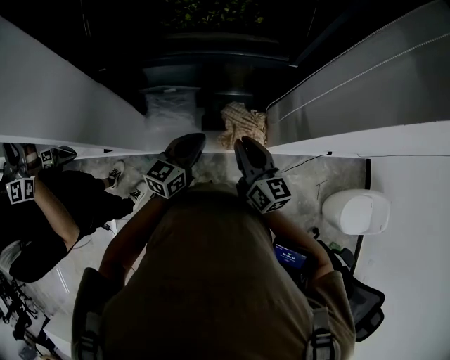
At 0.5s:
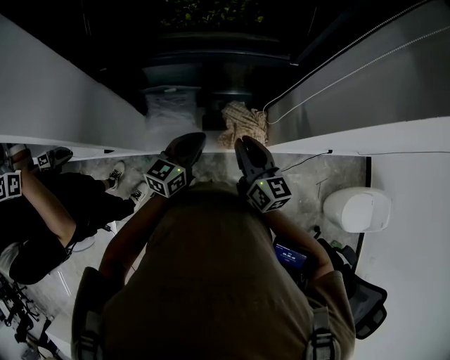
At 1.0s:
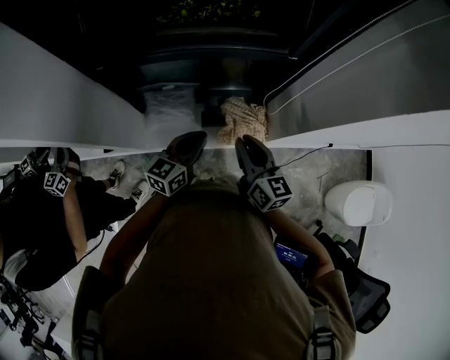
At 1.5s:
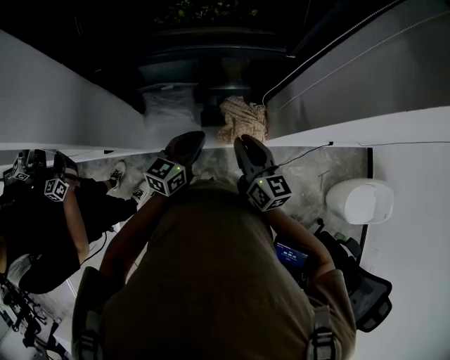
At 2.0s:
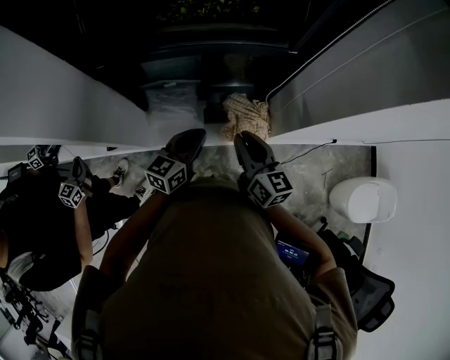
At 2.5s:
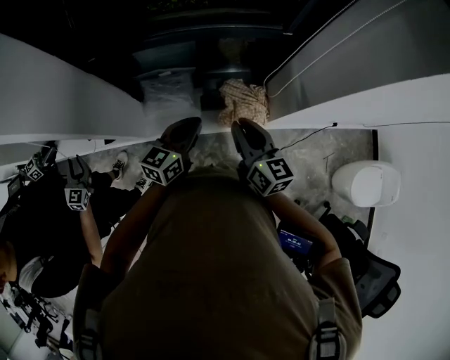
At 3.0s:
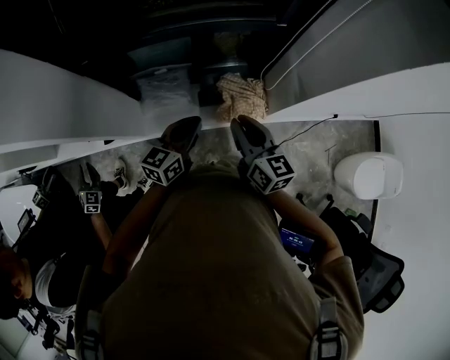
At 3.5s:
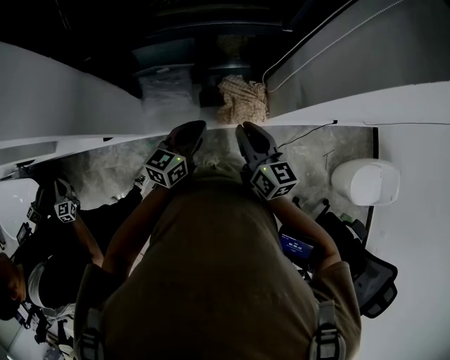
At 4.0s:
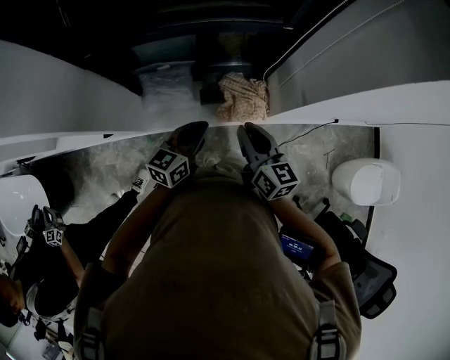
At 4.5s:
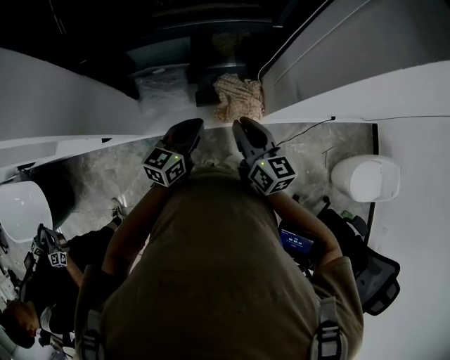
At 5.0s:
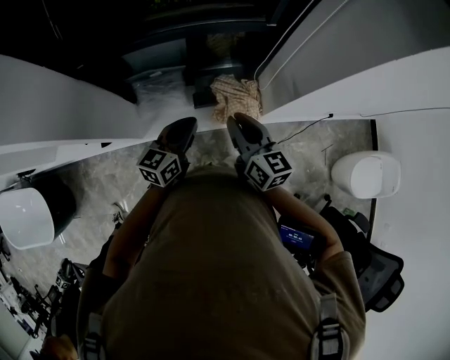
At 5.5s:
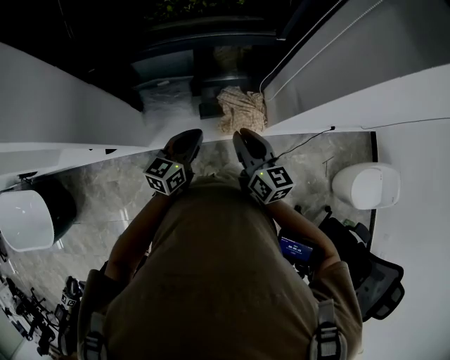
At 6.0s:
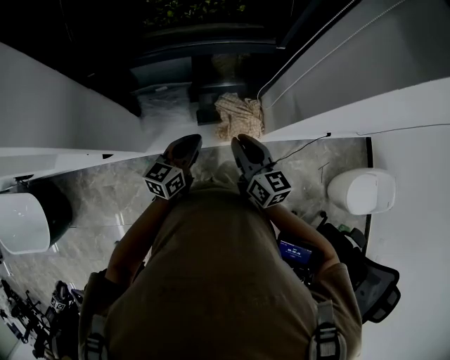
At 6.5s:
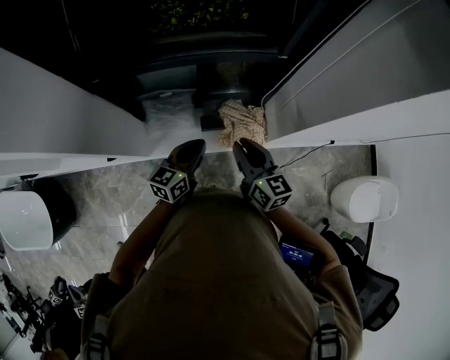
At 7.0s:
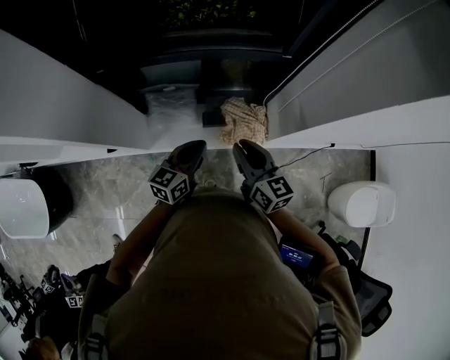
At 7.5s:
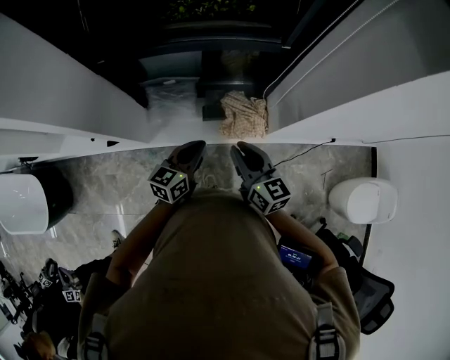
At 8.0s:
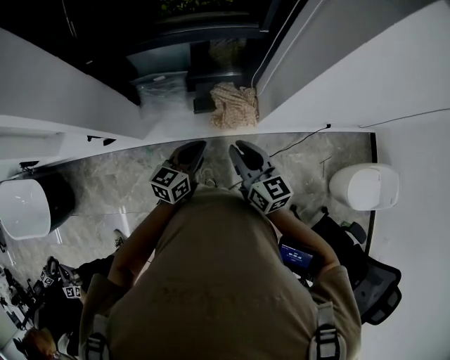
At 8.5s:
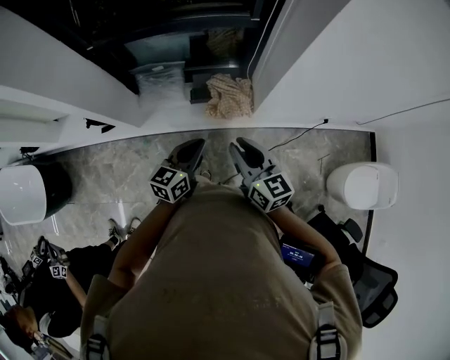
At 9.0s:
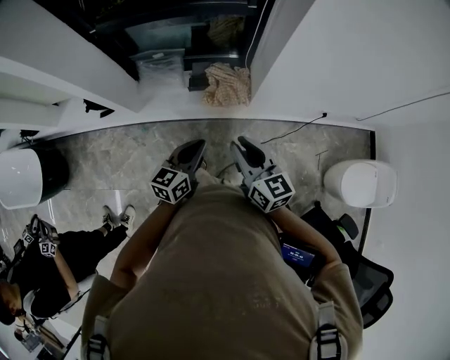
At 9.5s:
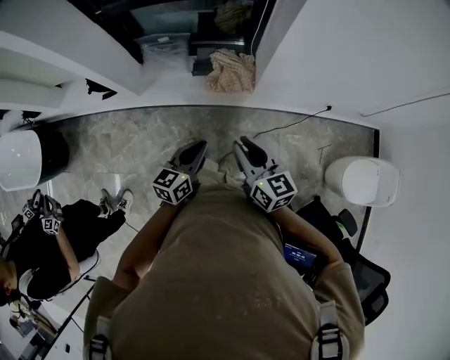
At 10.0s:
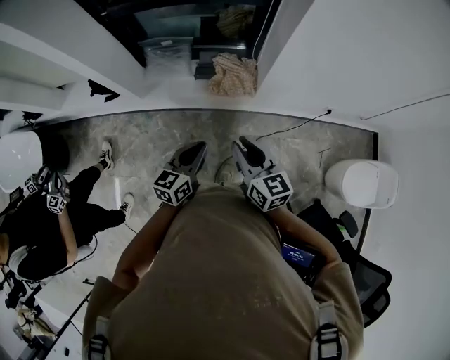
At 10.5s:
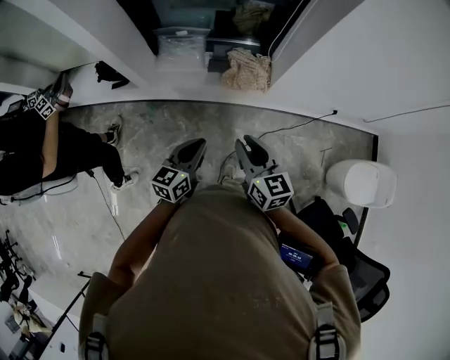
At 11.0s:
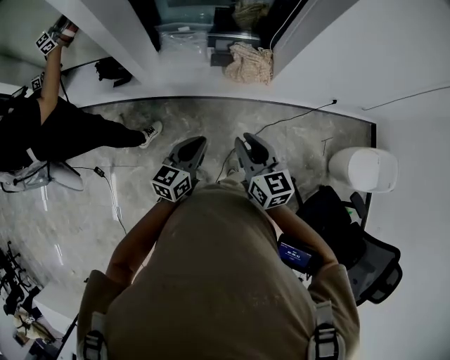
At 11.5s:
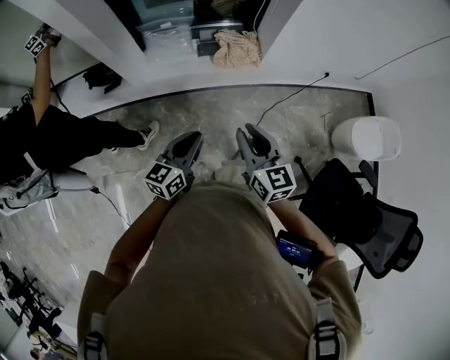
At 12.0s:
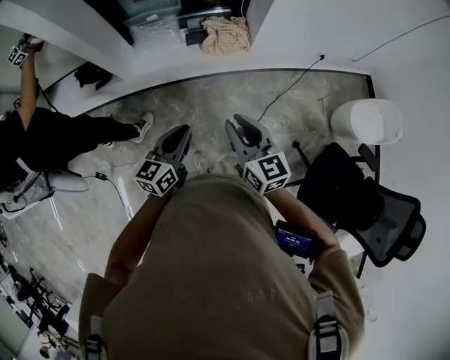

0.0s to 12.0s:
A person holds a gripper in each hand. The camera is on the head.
0.0s to 2.0s: The grippers move only a little.
2.0s to 4.0s: The left gripper ends up approximately 5 cm from where it was.
4.0s to 6.0s: The grippers move only a little.
6.0s to 8.0s: Both grippers move backward and to the right, some 15 cm.
8.0s to 10.0s: The left gripper heads backward, covering roughly 20 cm; the right gripper shifts about 20 cm backward and to the right.
10.0s to 12.0s: The grippers both shift backward and to the left by some 20 cm.

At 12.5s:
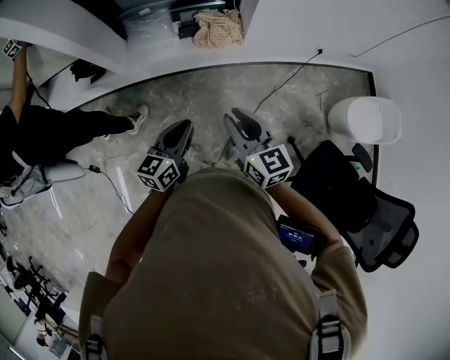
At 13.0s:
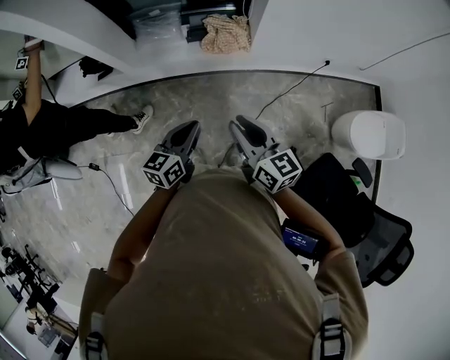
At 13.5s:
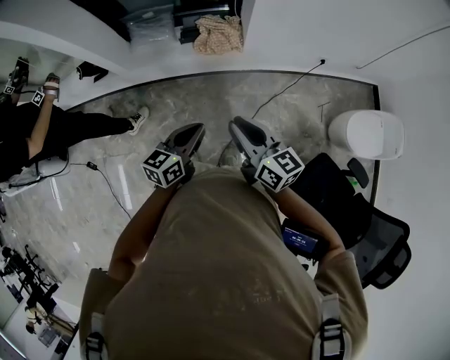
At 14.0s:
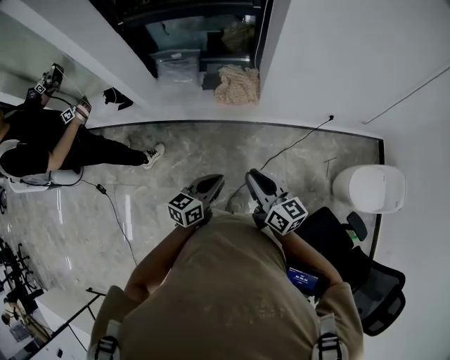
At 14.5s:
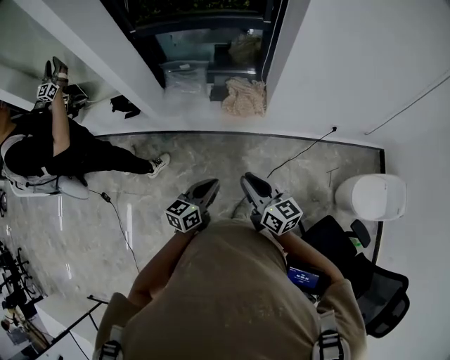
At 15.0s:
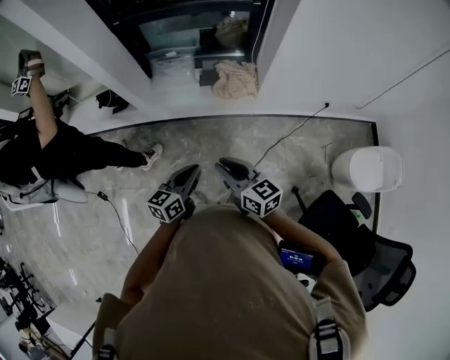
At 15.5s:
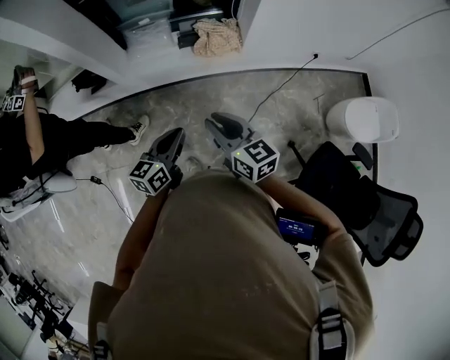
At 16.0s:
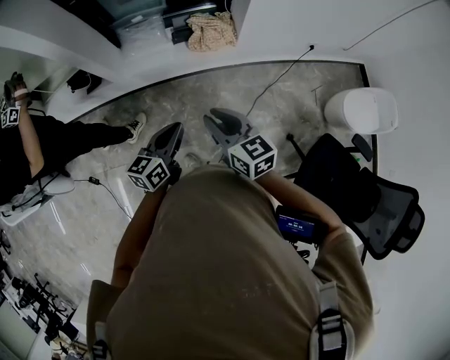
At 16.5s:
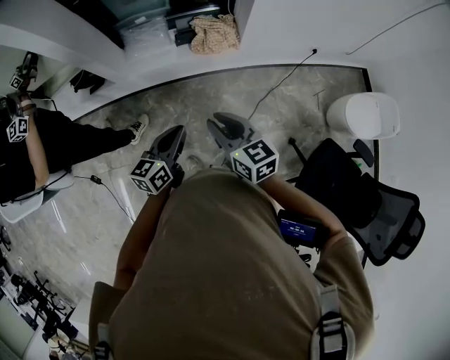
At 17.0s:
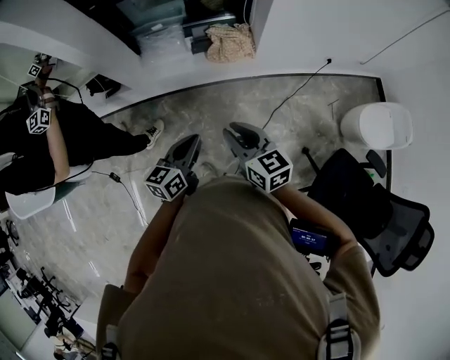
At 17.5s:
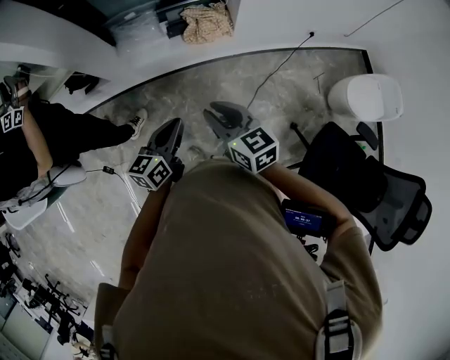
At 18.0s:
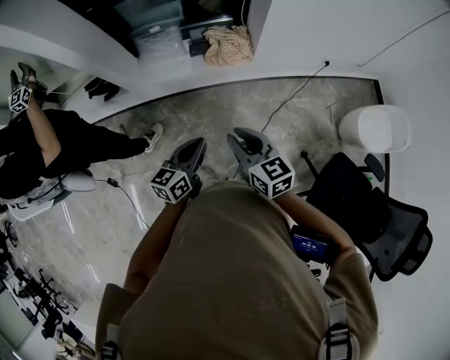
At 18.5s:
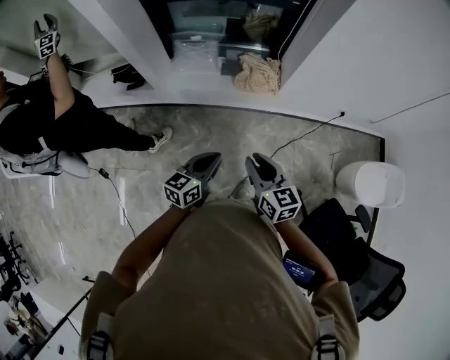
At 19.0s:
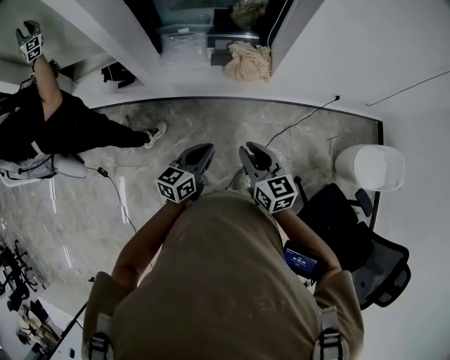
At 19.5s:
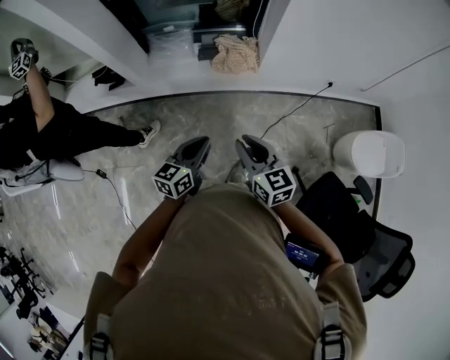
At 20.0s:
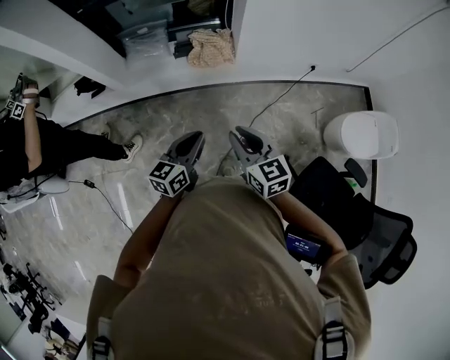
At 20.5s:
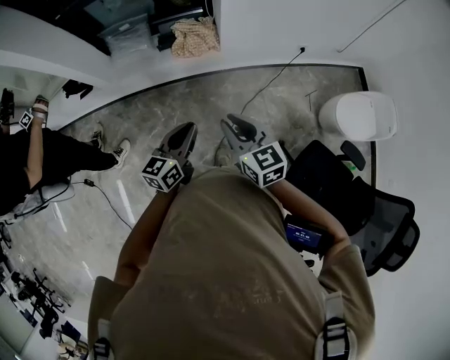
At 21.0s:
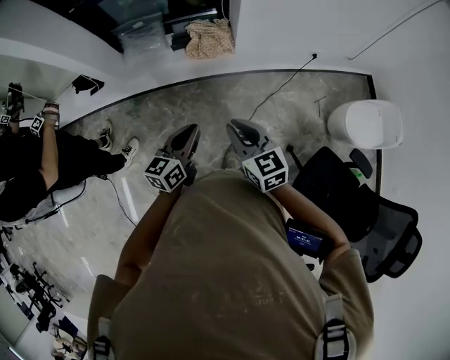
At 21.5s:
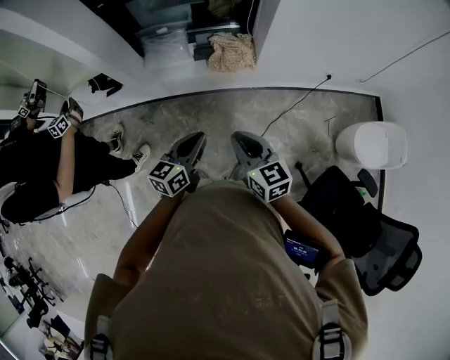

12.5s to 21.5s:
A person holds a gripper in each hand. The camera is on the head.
12.5s to 14.5s: The left gripper is displaced to the right by roughly 5 cm; the right gripper goes to the right and returns, approximately 10 cm each way.
14.5s to 17.0s: Both grippers travel together to the left, approximately 10 cm.
17.0s to 19.5s: The grippers both shift to the right by some 5 cm.
19.5s to 21.5s: The right gripper moves some 10 cm to the right and comes back. Meanwhile the left gripper goes to the right and returns, roughly 10 cm each way.

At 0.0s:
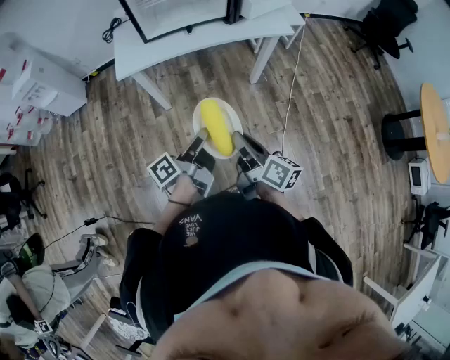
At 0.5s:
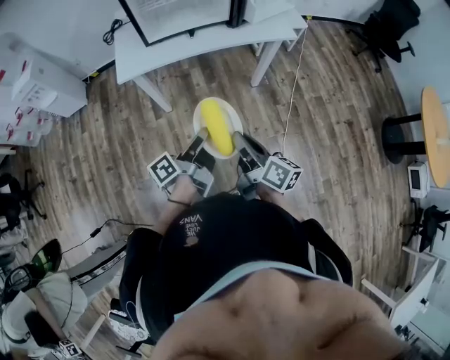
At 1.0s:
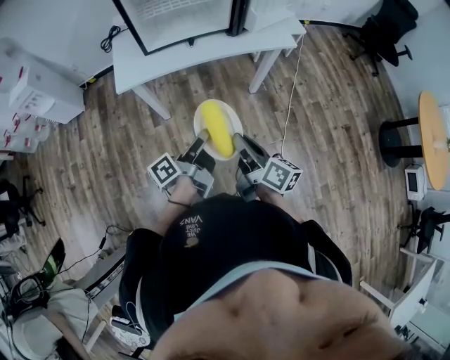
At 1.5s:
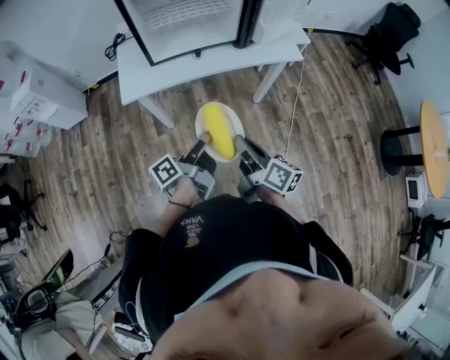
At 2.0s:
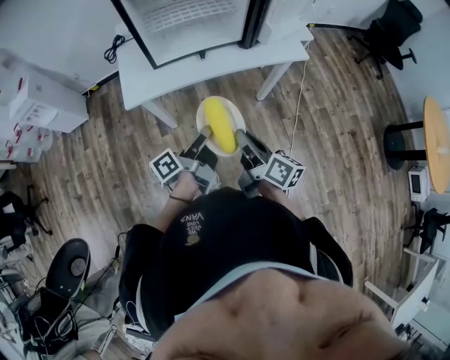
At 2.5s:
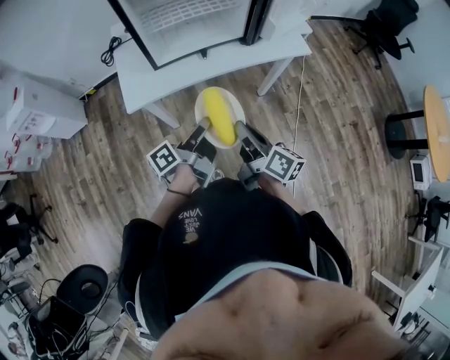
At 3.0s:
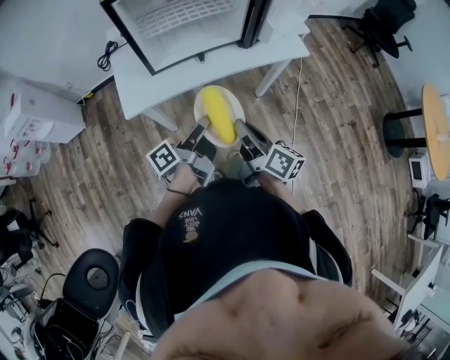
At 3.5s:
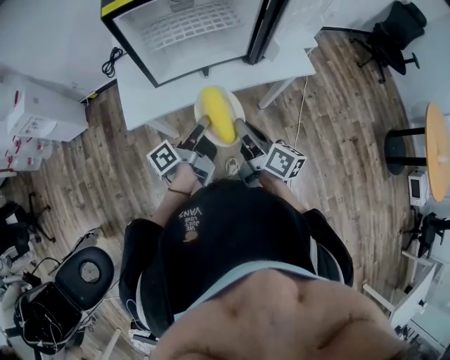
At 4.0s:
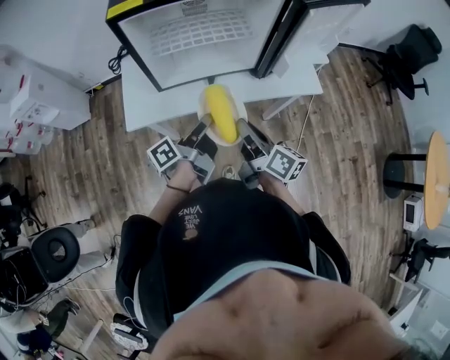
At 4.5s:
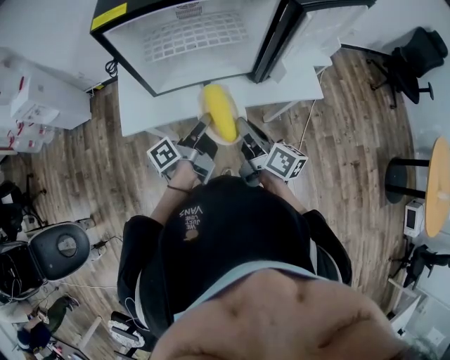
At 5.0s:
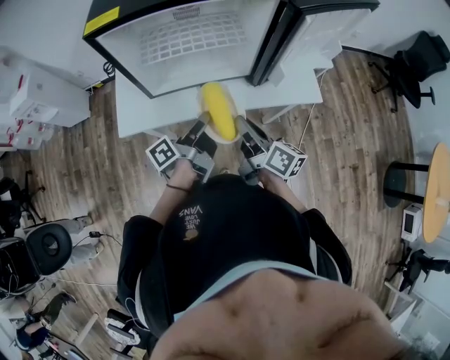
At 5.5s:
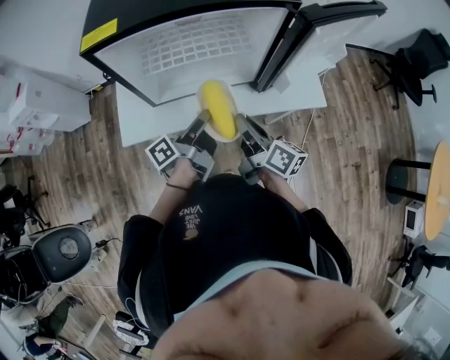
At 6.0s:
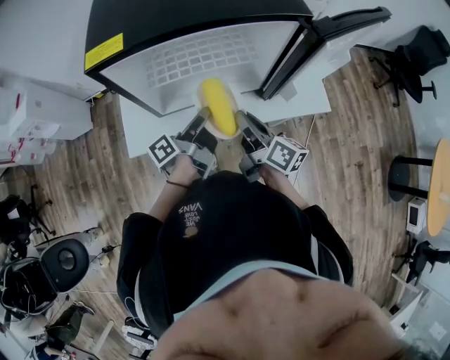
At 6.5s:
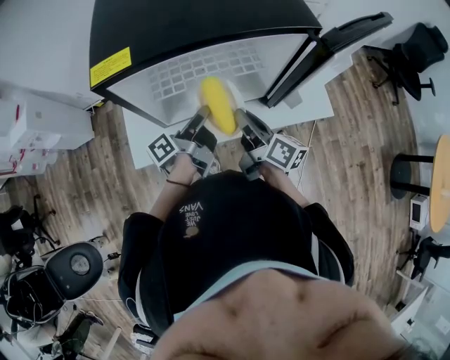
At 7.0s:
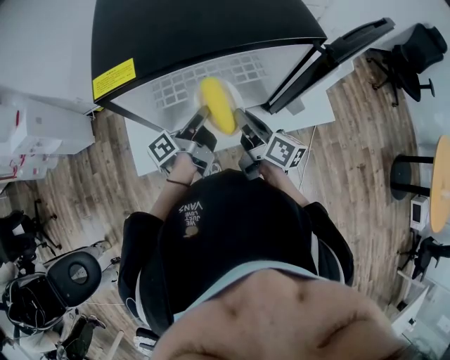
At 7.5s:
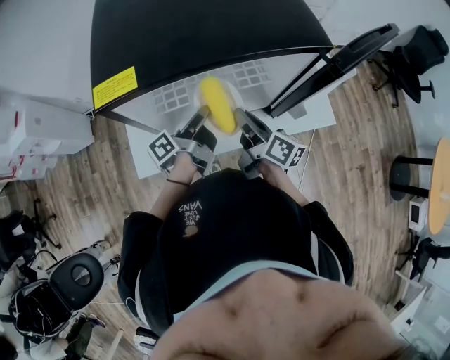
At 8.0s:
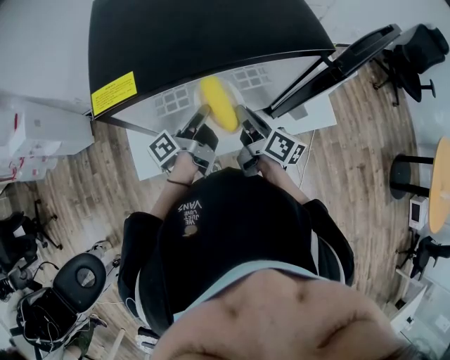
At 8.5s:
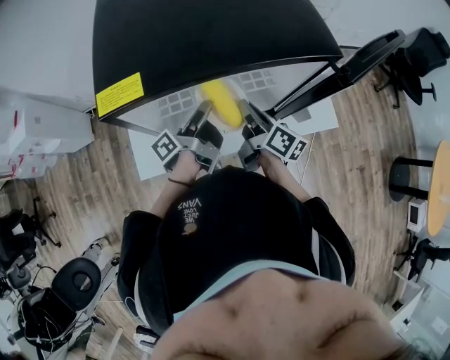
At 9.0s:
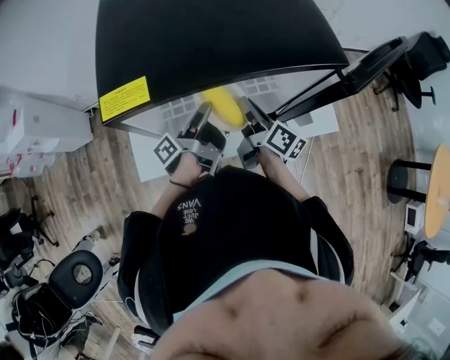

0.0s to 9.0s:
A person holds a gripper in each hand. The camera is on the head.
0.0s to 2.0s: The right gripper changes place by about 15 cm.
2.0s to 4.5s: The right gripper shifts by some 20 cm.
4.5s to 7.0s: The right gripper moves approximately 15 cm.
7.0s to 9.0s: The right gripper changes place by approximately 10 cm.
